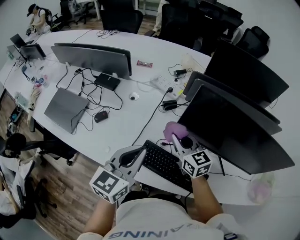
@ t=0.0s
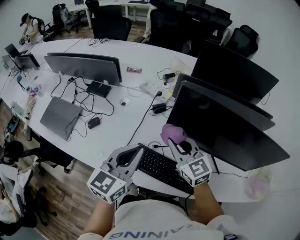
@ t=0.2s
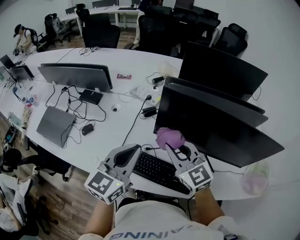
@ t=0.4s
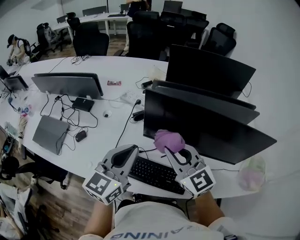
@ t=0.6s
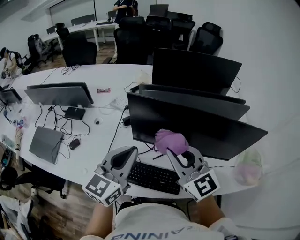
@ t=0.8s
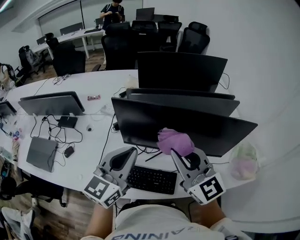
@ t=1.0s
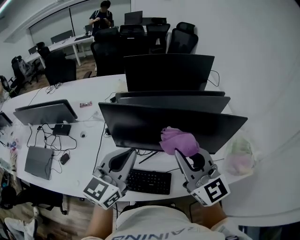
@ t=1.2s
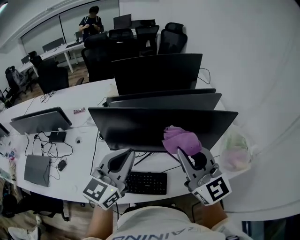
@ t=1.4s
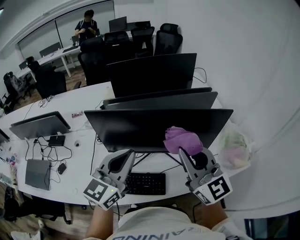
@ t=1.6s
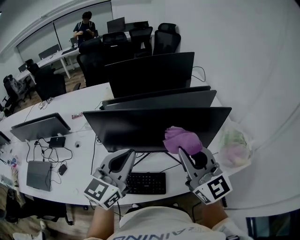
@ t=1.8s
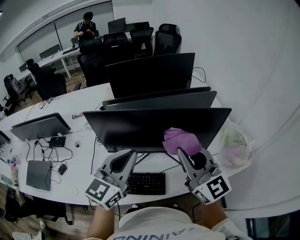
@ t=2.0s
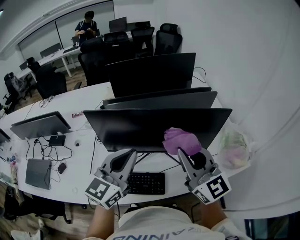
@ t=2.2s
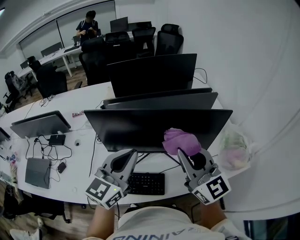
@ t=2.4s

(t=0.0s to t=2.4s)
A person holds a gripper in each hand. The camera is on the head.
t=0.0s - t=1.2s: The left gripper travels to the right and upward by roughly 25 cm, and swivels roughly 30 degrees. Meanwhile the right gripper is displaced upward, to the right and backward by some 35 cm, and swivels about 40 degrees.
t=1.2s - t=2.4s: The grippers both shift to the right by about 5 cm.

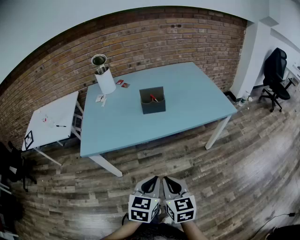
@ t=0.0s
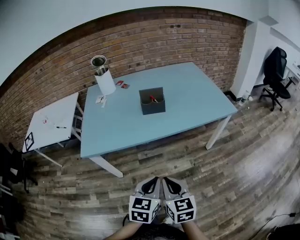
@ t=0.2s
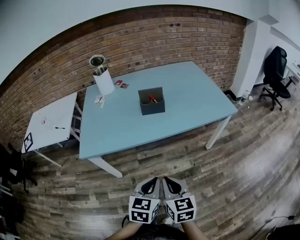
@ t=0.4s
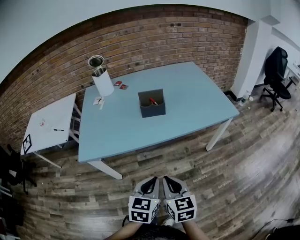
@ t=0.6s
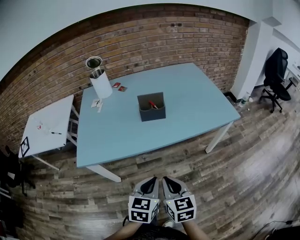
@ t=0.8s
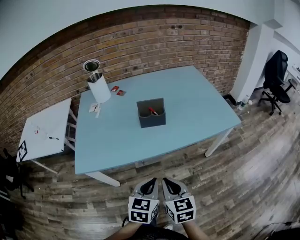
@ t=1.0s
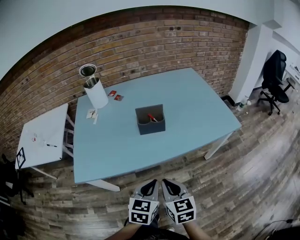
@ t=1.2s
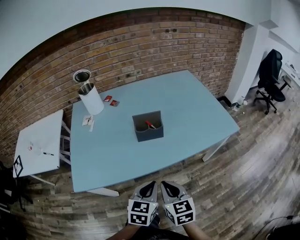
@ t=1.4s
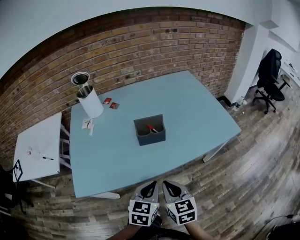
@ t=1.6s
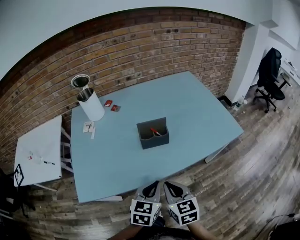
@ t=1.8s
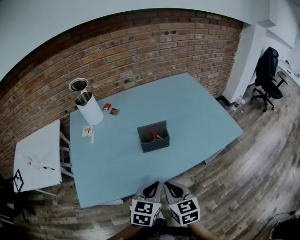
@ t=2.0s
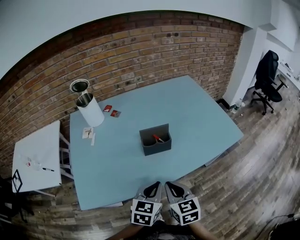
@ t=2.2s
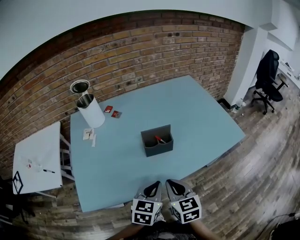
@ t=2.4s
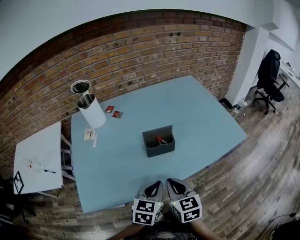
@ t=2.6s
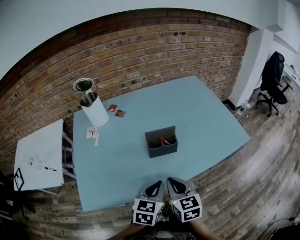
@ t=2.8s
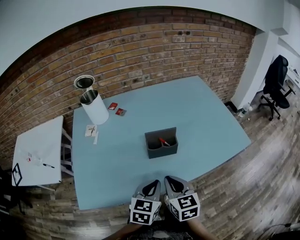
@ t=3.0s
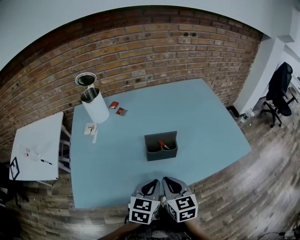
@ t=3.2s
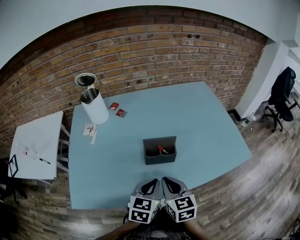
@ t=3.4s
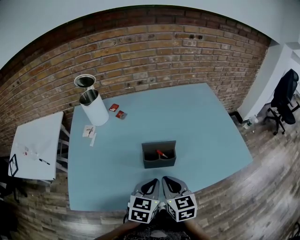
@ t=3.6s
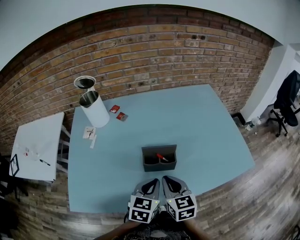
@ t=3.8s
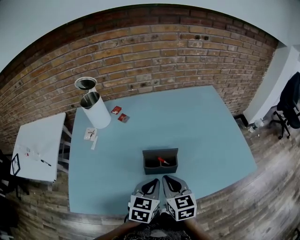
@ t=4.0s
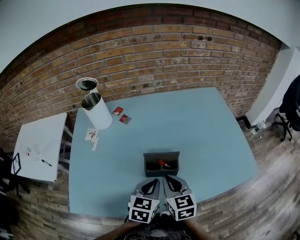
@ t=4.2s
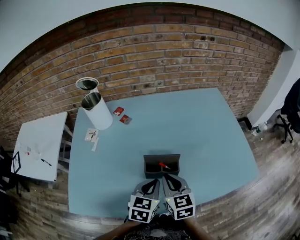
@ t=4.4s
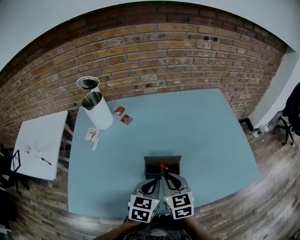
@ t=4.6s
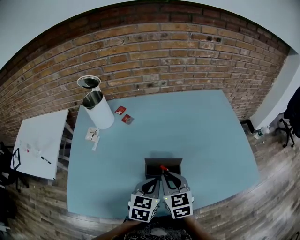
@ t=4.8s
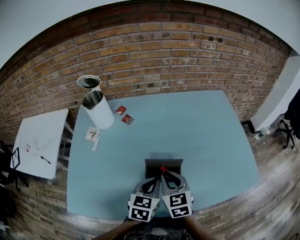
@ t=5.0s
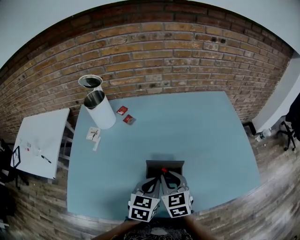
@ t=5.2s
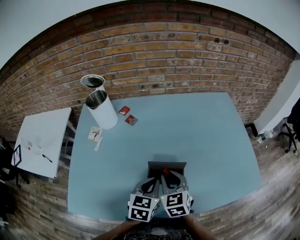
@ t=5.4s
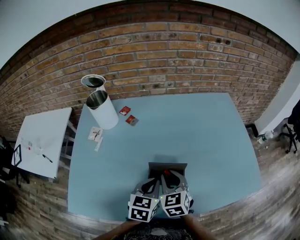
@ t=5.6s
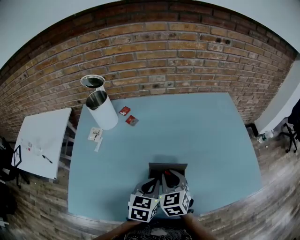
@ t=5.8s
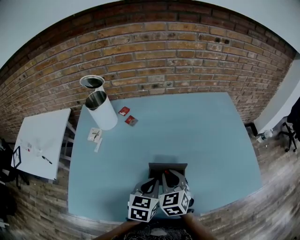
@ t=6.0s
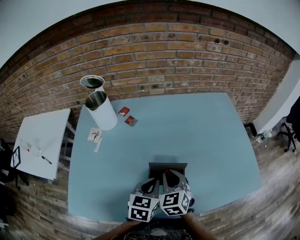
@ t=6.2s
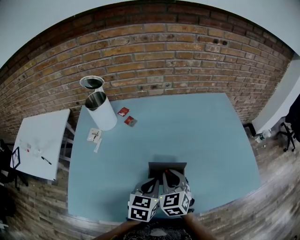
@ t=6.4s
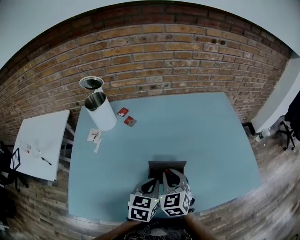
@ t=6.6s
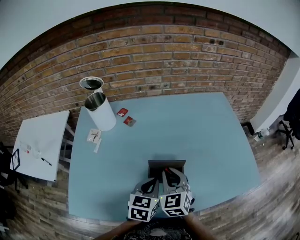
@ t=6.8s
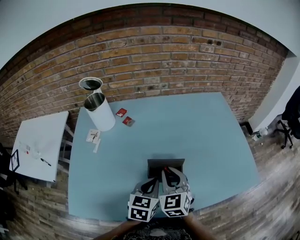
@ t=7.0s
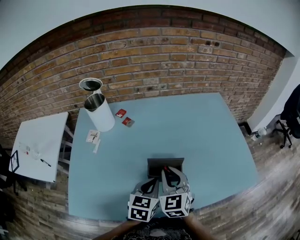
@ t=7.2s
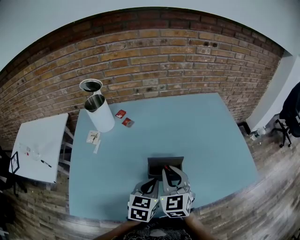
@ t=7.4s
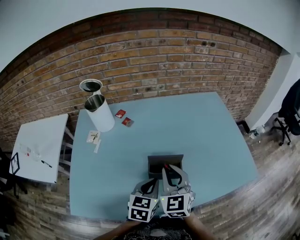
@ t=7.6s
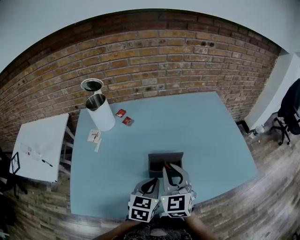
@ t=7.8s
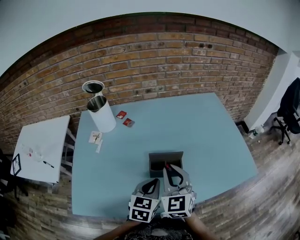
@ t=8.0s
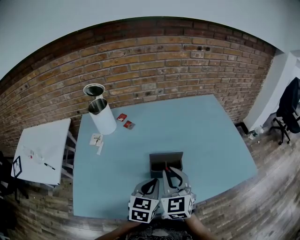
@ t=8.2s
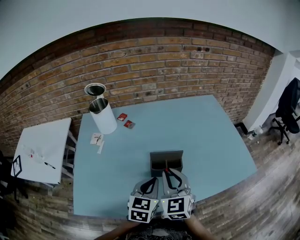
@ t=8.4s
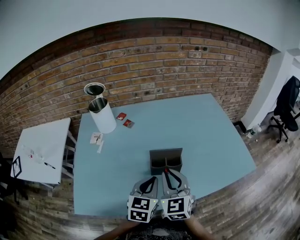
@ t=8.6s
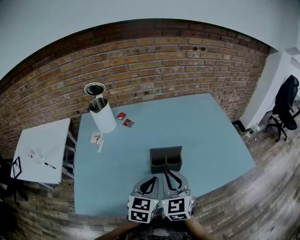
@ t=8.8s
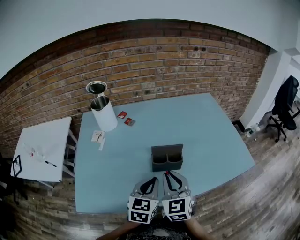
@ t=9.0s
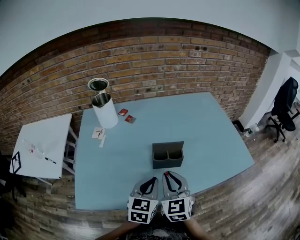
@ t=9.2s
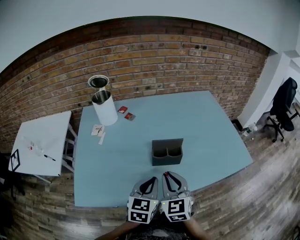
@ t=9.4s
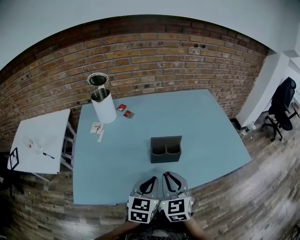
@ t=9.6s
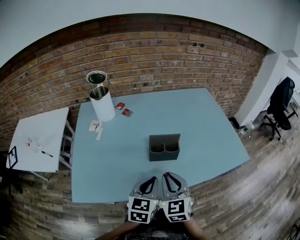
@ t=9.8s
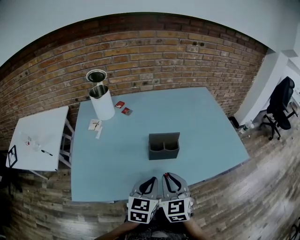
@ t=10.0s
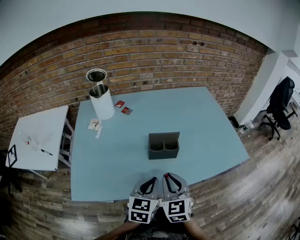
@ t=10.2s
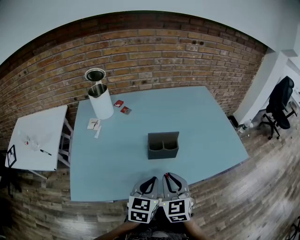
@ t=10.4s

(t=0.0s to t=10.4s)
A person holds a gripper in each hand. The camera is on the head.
t=0.0s - t=1.4s: The two grippers go roughly 15 cm forward.
t=1.4s - t=3.0s: The left gripper travels forward and to the left by about 10 cm. Meanwhile the right gripper travels forward by about 15 cm.
t=3.0s - t=4.4s: Both grippers move forward, roughly 15 cm.
t=4.4s - t=6.0s: The right gripper travels forward by about 5 cm, and swivels about 20 degrees.
t=6.0s - t=7.4s: The right gripper is displaced upward by approximately 5 cm.
t=7.4s - t=9.0s: The two grippers go roughly 10 cm backward.
t=9.0s - t=10.4s: The grippers both shift backward by approximately 5 cm.

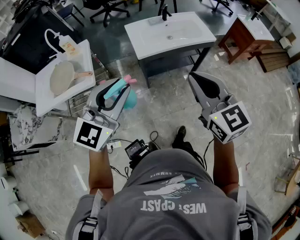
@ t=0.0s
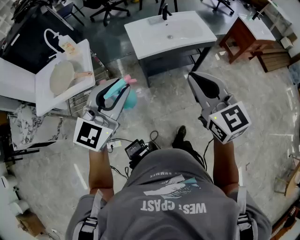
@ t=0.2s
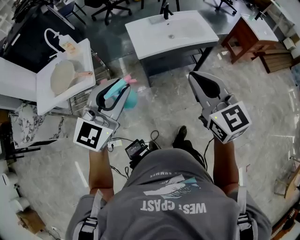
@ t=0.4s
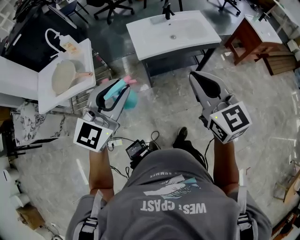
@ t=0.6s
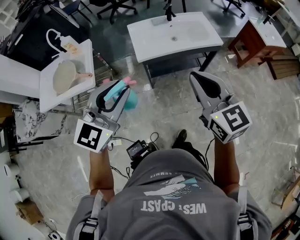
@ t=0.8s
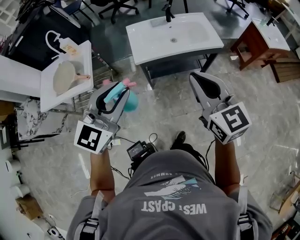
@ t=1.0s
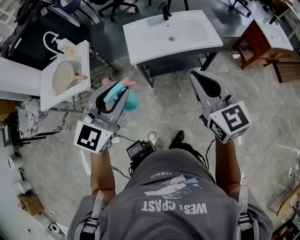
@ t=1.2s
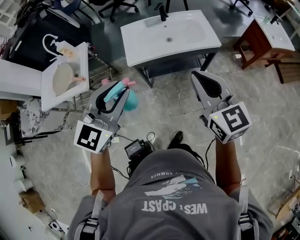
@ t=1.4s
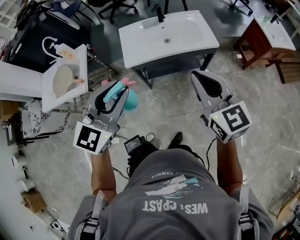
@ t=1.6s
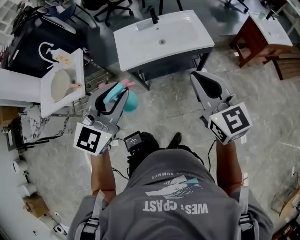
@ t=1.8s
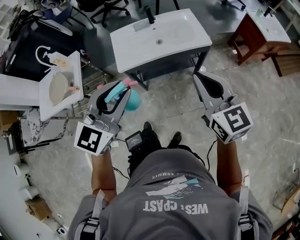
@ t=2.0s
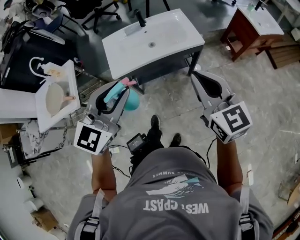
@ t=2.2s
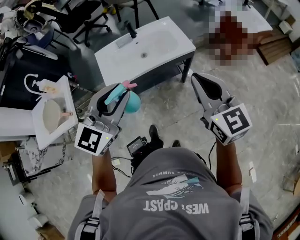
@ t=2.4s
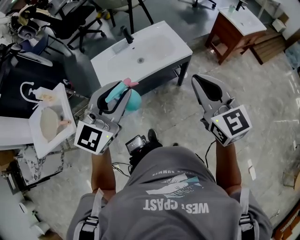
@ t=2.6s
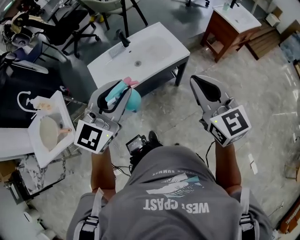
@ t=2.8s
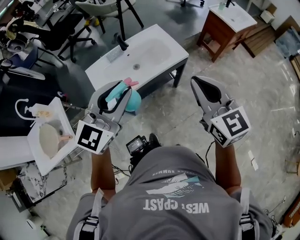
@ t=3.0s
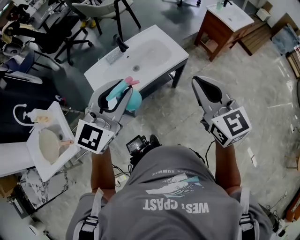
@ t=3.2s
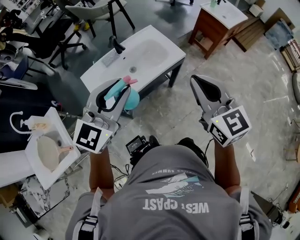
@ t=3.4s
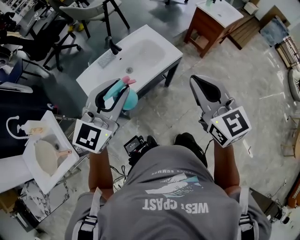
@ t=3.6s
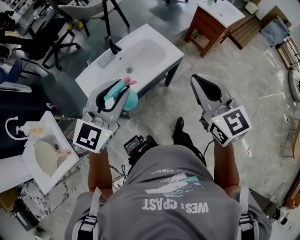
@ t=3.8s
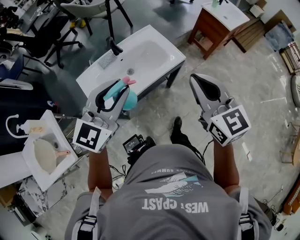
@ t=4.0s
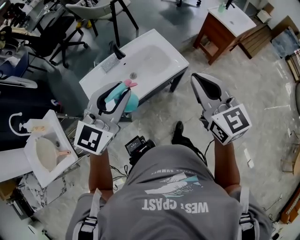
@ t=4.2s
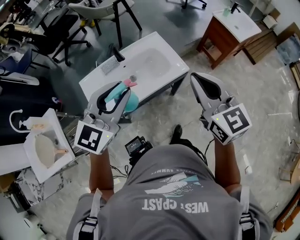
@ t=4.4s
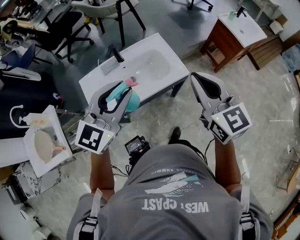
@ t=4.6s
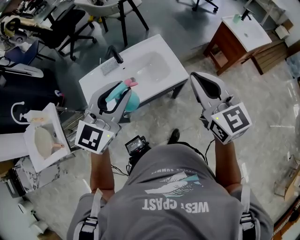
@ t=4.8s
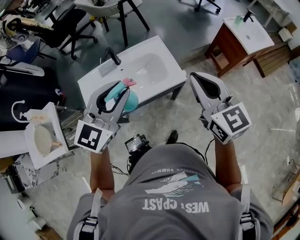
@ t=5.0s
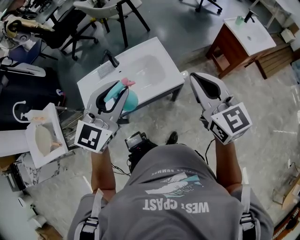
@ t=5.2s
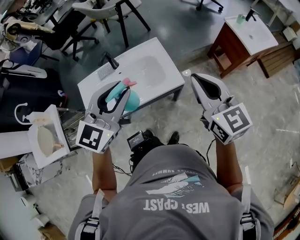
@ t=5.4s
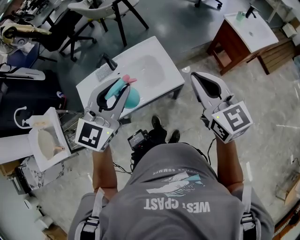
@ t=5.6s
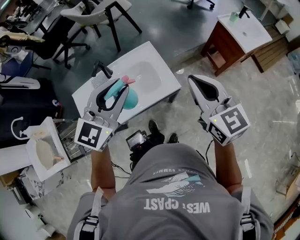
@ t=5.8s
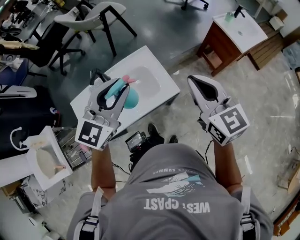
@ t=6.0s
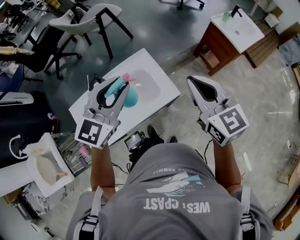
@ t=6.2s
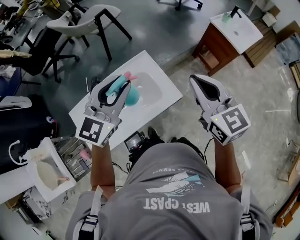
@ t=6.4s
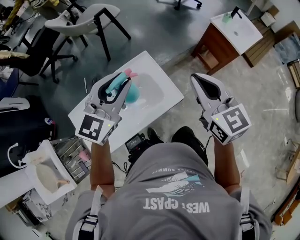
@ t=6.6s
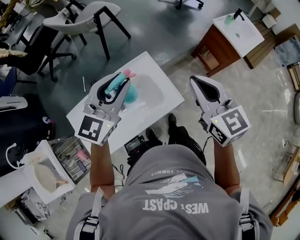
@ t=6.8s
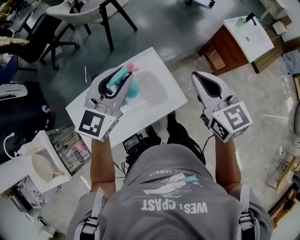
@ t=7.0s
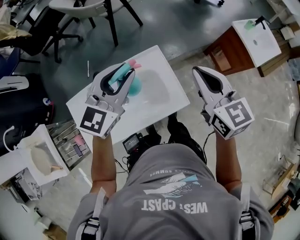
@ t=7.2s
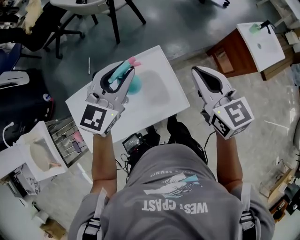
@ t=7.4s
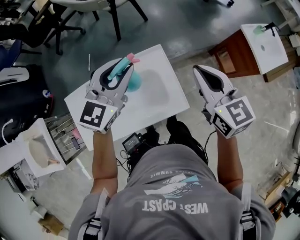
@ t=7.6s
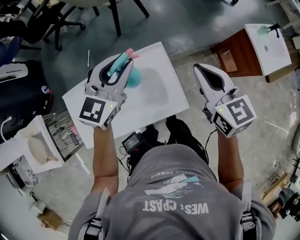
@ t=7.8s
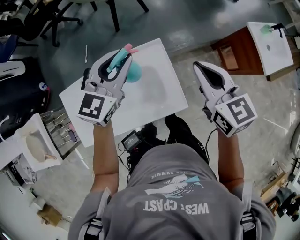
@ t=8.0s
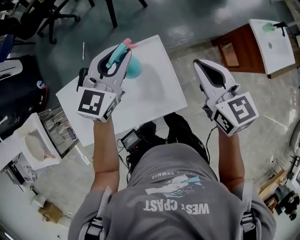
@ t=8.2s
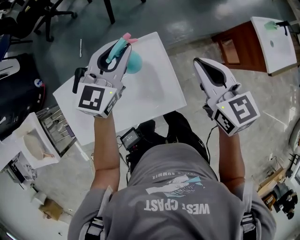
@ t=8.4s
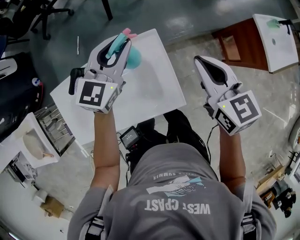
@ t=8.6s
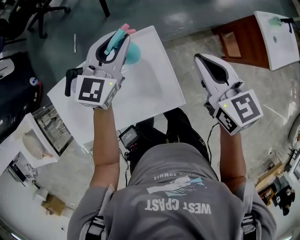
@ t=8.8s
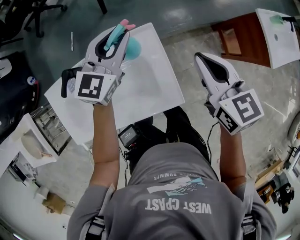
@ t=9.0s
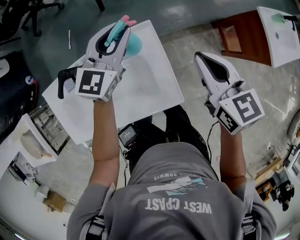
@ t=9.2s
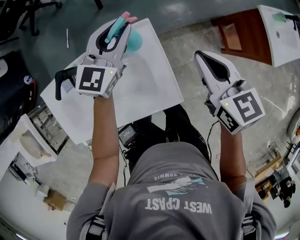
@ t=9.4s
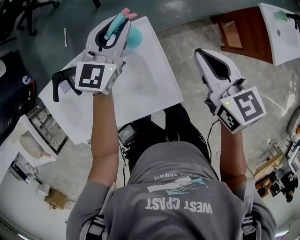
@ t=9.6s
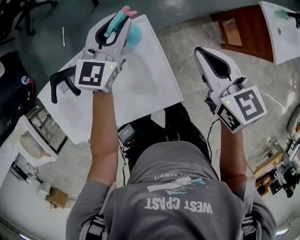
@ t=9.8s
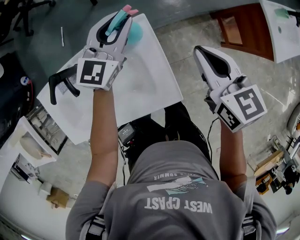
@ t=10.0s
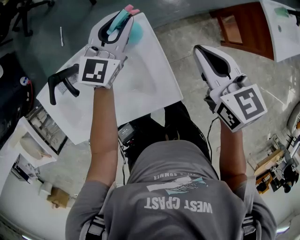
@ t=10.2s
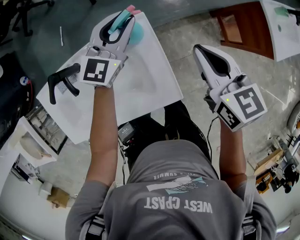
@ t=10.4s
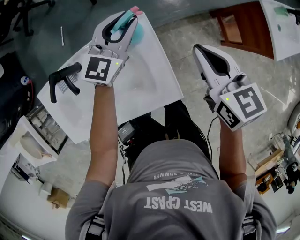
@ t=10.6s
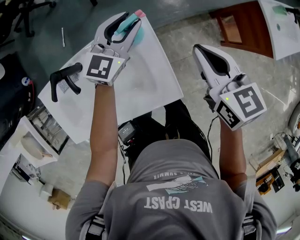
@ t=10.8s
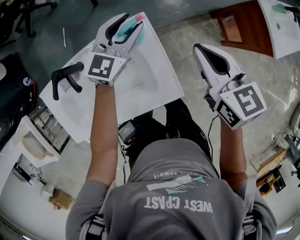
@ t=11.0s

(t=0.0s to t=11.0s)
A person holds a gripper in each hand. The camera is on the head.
t=0.0s - t=1.6s: Both grippers move to the right and forward, some 25 cm.
t=1.6s - t=3.2s: The right gripper moves approximately 10 cm, and turns by about 20 degrees; the left gripper moves approximately 20 cm, and changes its angle by some 30 degrees.
t=3.2s - t=4.8s: The right gripper shifts roughly 20 cm forward. The left gripper moves forward and to the right, approximately 20 cm.
t=4.8s - t=6.2s: The grippers both shift forward by approximately 15 cm.
t=6.2s - t=7.8s: The grippers both shift forward and downward by approximately 20 cm.
t=7.8s - t=9.4s: Both grippers move downward and forward, approximately 15 cm.
t=9.4s - t=11.0s: The left gripper is displaced downward by roughly 5 cm.
